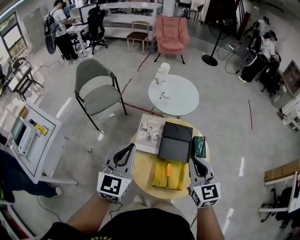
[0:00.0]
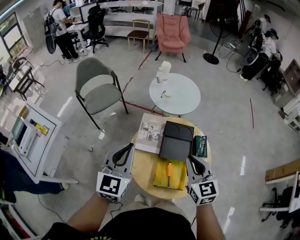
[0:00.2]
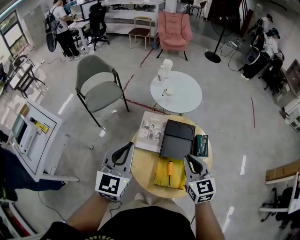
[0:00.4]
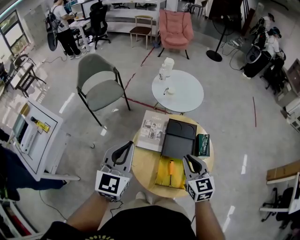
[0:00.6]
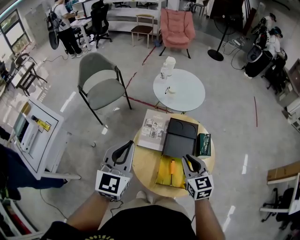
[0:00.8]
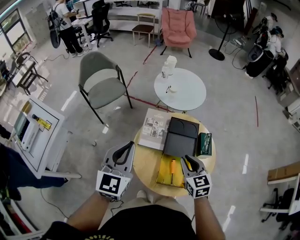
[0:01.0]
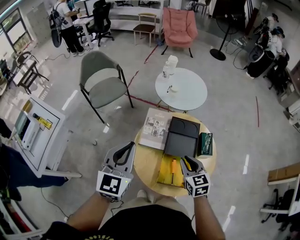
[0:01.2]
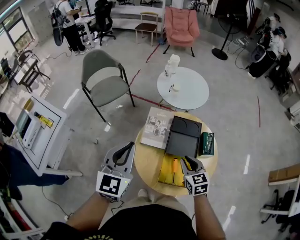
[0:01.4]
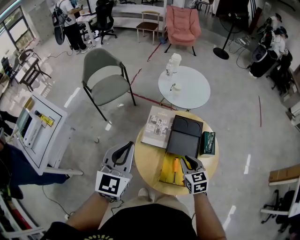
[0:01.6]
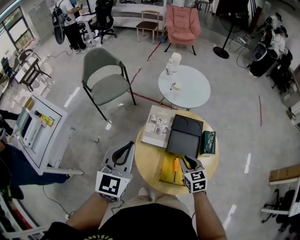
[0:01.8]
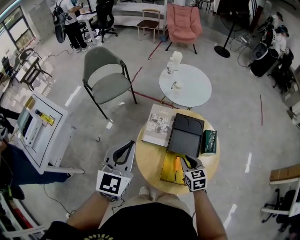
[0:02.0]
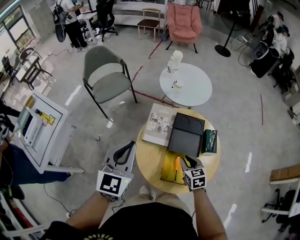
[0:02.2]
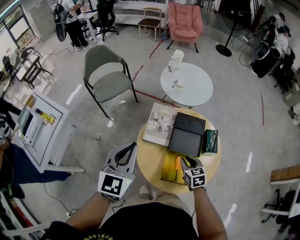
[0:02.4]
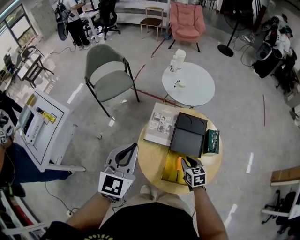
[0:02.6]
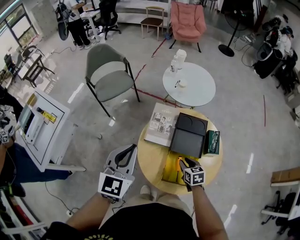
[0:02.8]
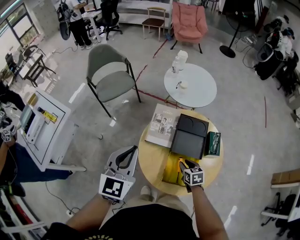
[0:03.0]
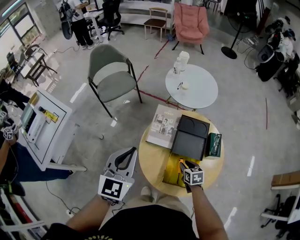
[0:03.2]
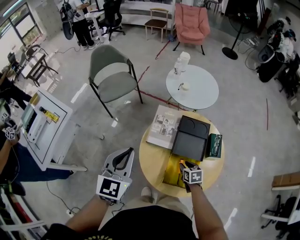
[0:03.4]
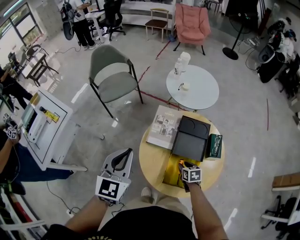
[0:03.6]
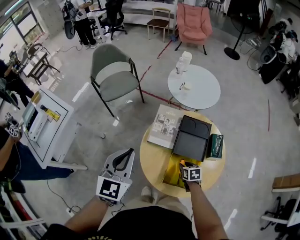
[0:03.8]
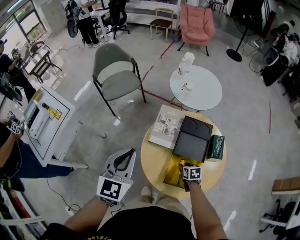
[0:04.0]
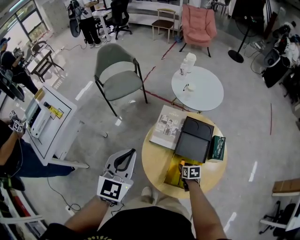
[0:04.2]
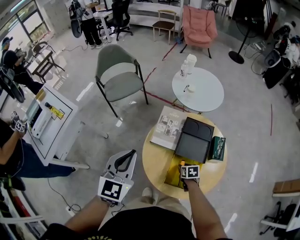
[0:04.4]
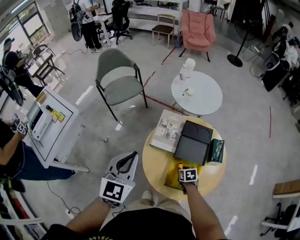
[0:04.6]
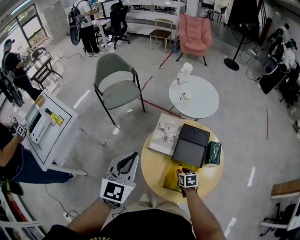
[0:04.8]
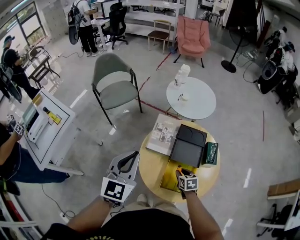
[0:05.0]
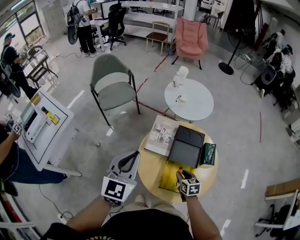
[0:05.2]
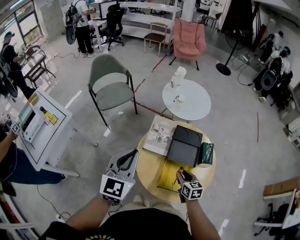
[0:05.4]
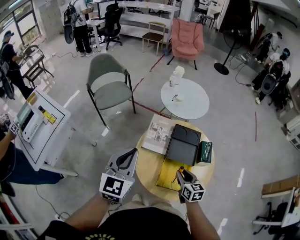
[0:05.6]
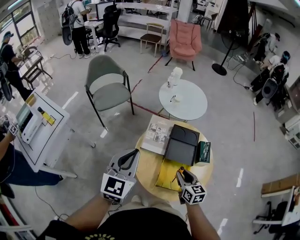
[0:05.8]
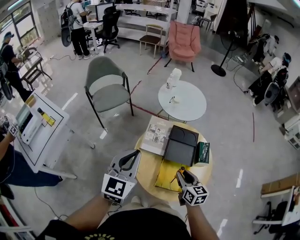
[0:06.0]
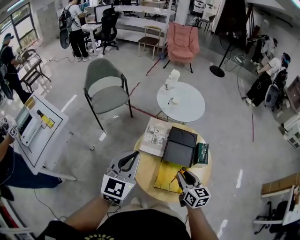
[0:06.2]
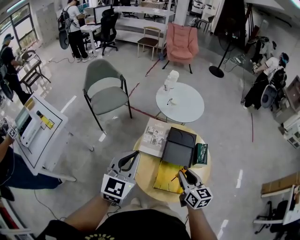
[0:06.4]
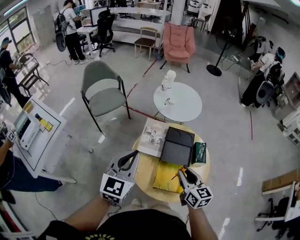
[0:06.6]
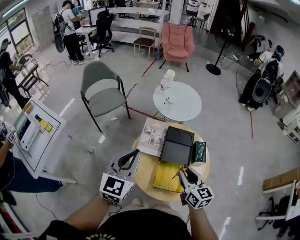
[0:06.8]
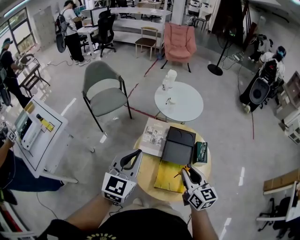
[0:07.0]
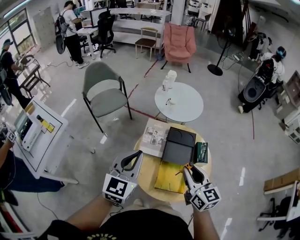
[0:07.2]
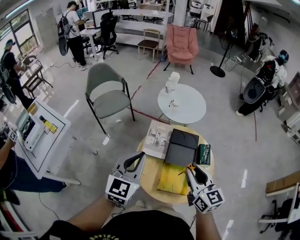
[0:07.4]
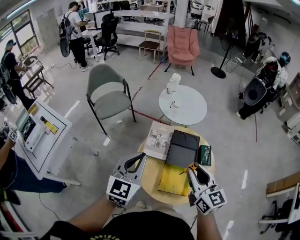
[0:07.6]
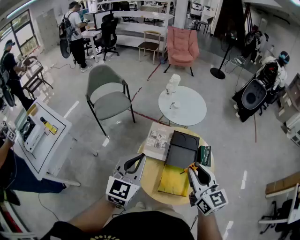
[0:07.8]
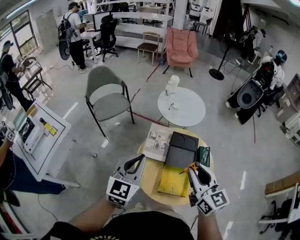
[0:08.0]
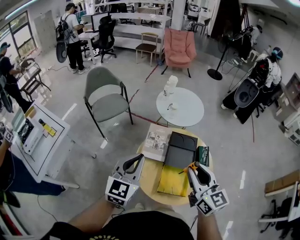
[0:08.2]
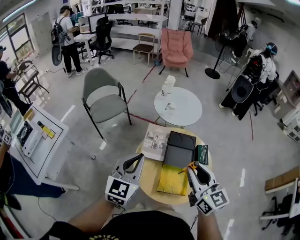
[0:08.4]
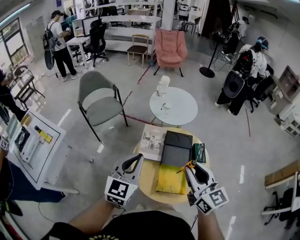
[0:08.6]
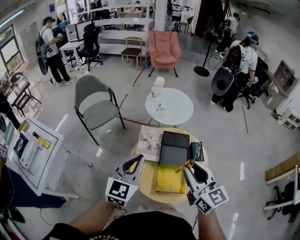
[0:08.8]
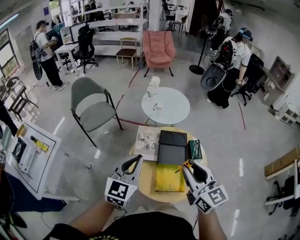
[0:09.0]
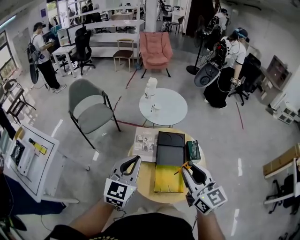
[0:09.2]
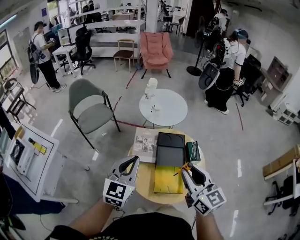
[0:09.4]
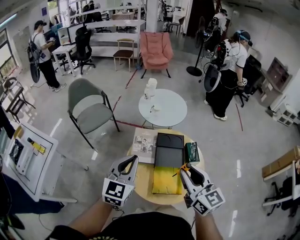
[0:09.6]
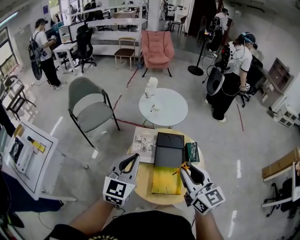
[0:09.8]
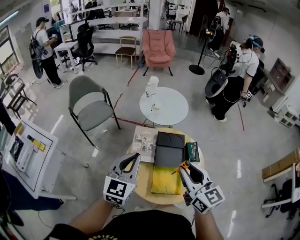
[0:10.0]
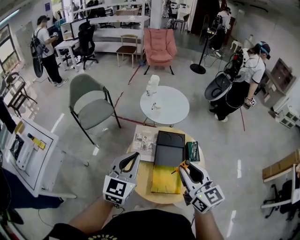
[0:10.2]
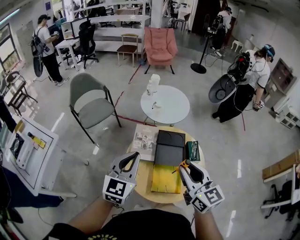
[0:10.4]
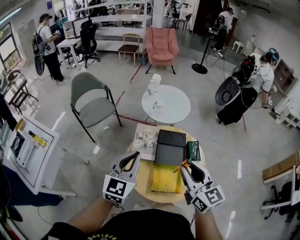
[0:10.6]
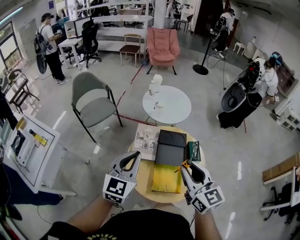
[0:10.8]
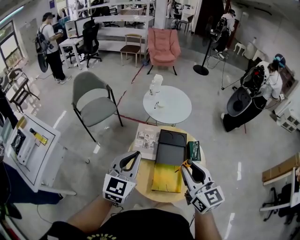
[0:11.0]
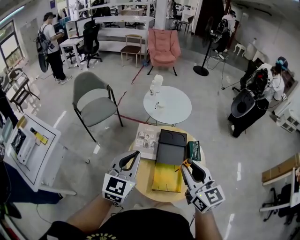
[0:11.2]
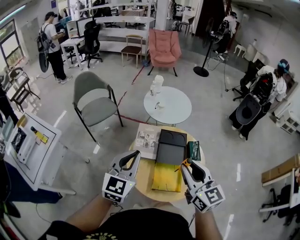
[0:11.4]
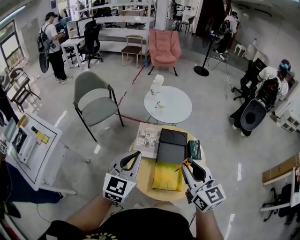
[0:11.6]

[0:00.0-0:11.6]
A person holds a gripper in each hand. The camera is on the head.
0:00.0 to 0:01.4: The right gripper is displaced downward by some 15 cm.
0:01.4 to 0:02.8: The right gripper is displaced downward by some 15 cm.
0:02.8 to 0:04.4: The right gripper shifts some 10 cm downward.
0:04.4 to 0:05.8: The right gripper heads upward, covering some 20 cm, and tilts its fingers some 30 degrees upward.
0:05.8 to 0:07.2: The right gripper travels upward by approximately 15 cm.
0:07.2 to 0:08.8: The right gripper is displaced upward by approximately 10 cm.
0:08.8 to 0:11.6: There are only small adjustments of the grippers.

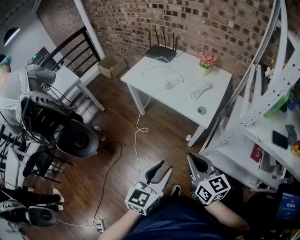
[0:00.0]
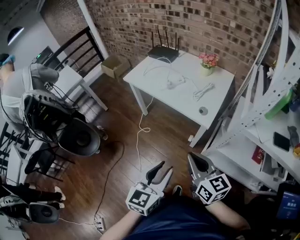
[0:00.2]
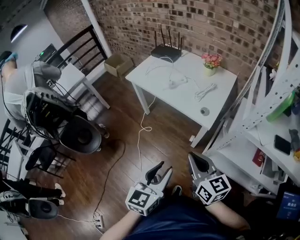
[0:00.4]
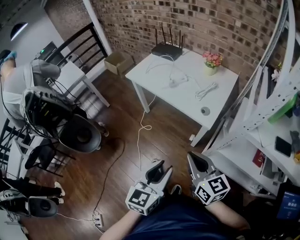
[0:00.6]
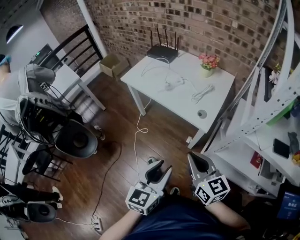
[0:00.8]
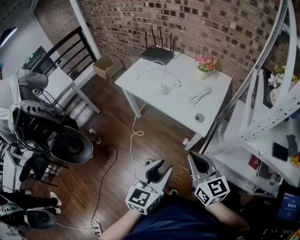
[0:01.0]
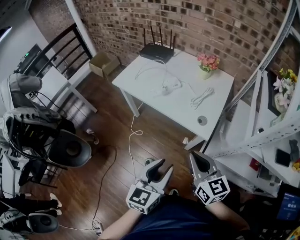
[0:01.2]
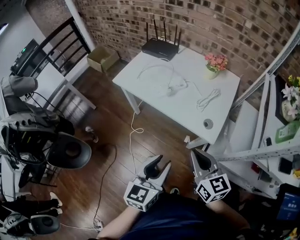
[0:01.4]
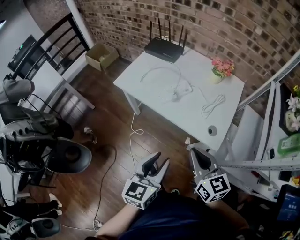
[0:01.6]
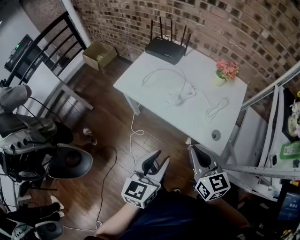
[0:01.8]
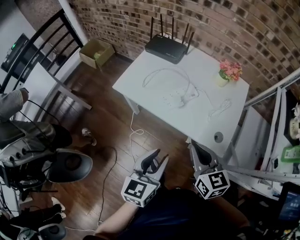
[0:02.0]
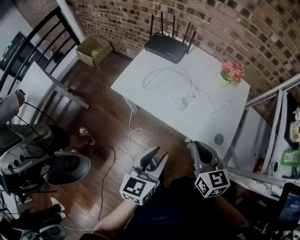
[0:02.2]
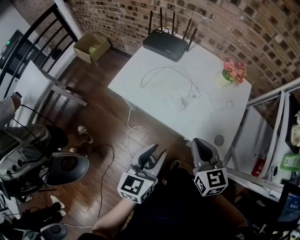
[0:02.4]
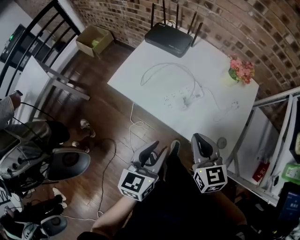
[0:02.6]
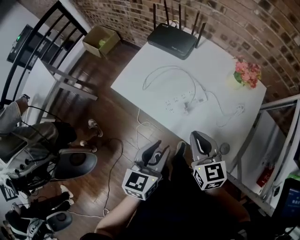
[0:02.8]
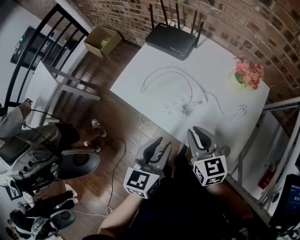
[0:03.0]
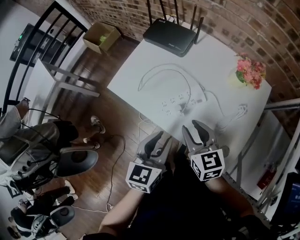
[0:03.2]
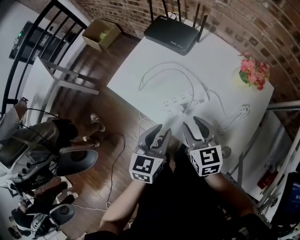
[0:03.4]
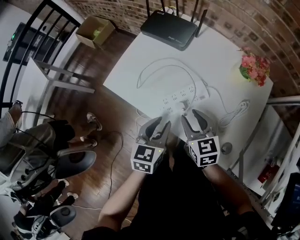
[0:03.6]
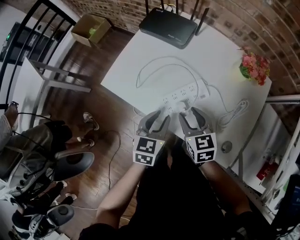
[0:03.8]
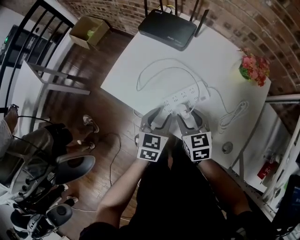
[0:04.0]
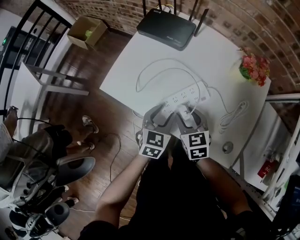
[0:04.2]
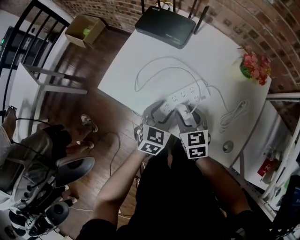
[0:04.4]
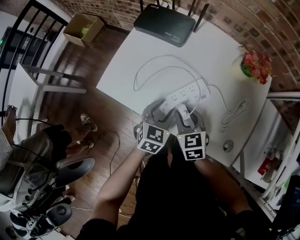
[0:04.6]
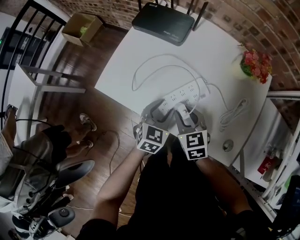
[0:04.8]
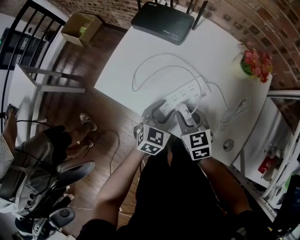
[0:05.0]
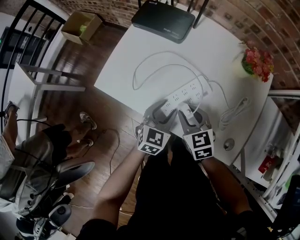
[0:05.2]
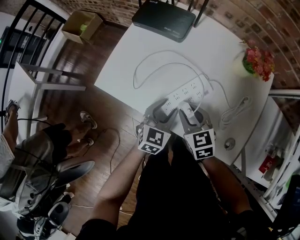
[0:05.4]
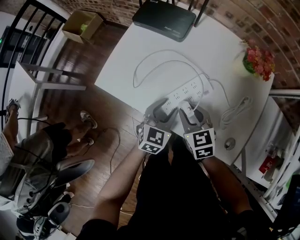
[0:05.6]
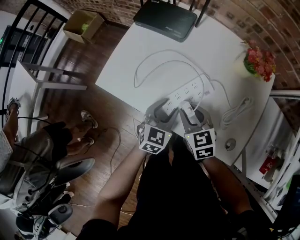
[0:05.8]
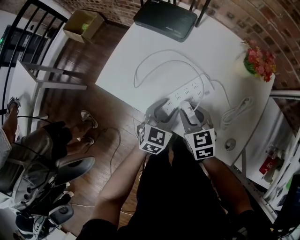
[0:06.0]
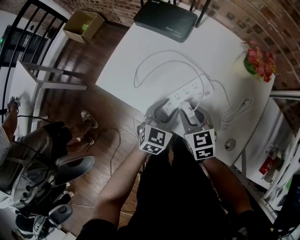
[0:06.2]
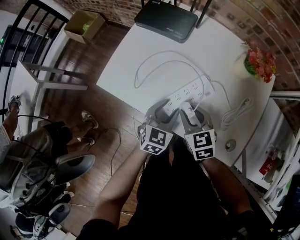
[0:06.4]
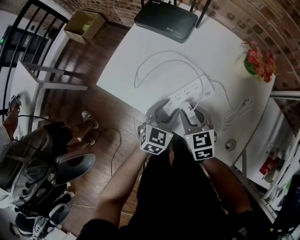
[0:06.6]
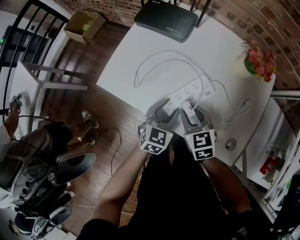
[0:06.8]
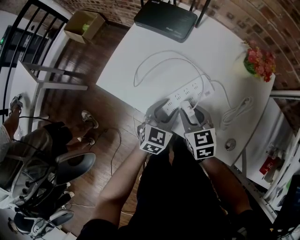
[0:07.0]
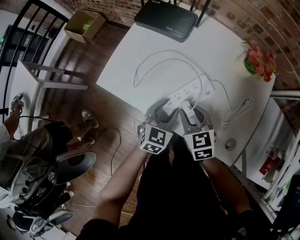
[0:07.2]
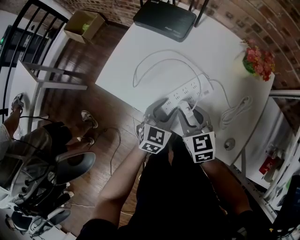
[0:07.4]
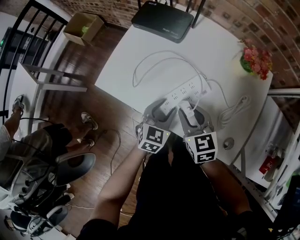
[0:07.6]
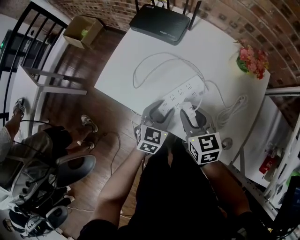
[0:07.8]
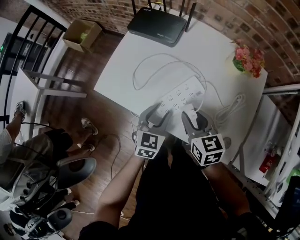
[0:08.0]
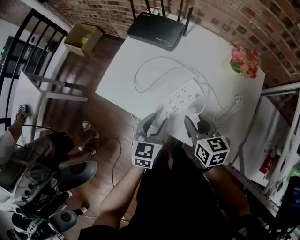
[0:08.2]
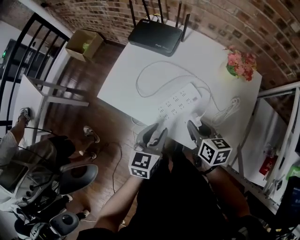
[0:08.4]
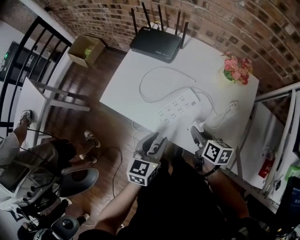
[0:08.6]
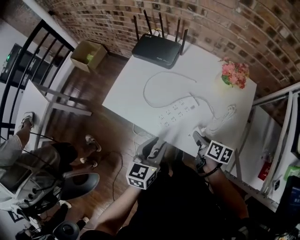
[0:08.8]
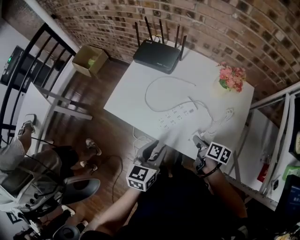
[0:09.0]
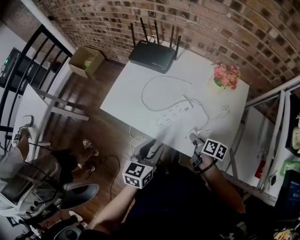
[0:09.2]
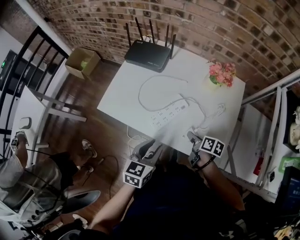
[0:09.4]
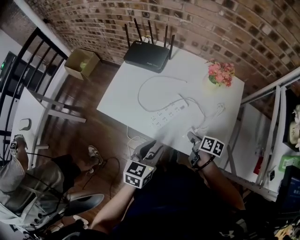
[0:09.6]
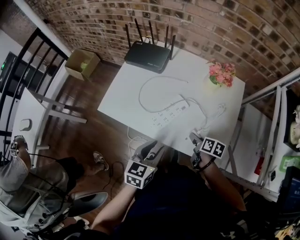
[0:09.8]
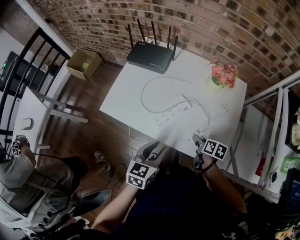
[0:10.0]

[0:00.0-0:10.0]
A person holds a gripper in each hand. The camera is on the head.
0:00.0 to 0:01.4: The two grippers go approximately 15 cm forward.
0:01.4 to 0:02.8: The two grippers go some 25 cm forward.
0:02.8 to 0:04.2: The two grippers go some 20 cm downward and forward. The left gripper changes its angle by about 20 degrees, while the right gripper opens.
0:04.2 to 0:05.8: The grippers move only a little.
0:05.8 to 0:07.2: Neither gripper changes place.
0:07.2 to 0:08.6: The right gripper is displaced to the right by roughly 10 cm, and rotates around the line of its fingers by some 50 degrees, clockwise from behind. The left gripper is displaced upward and backward by approximately 10 cm.
0:08.6 to 0:10.0: The right gripper heads downward and to the right, covering approximately 10 cm.

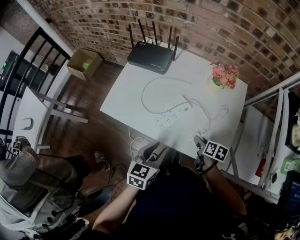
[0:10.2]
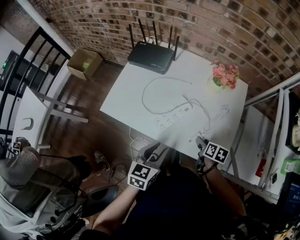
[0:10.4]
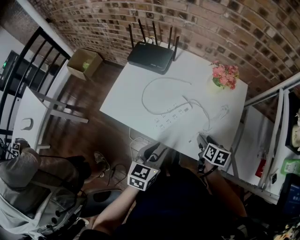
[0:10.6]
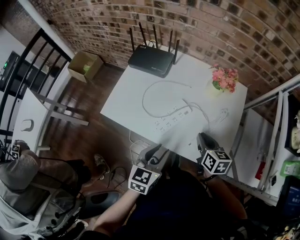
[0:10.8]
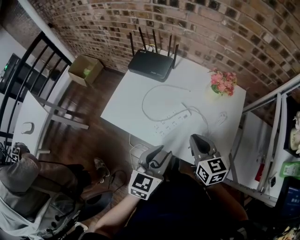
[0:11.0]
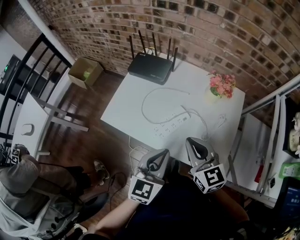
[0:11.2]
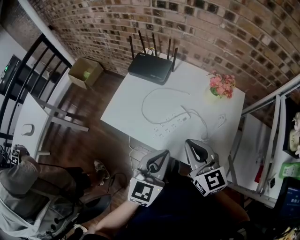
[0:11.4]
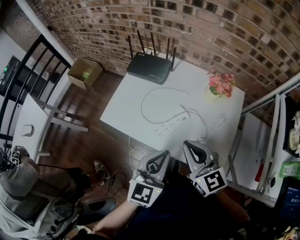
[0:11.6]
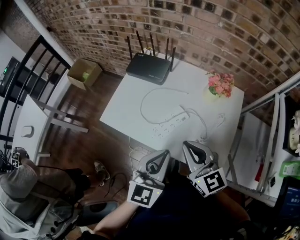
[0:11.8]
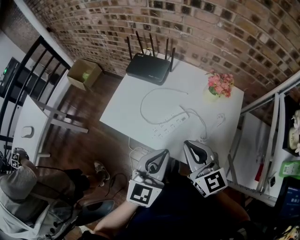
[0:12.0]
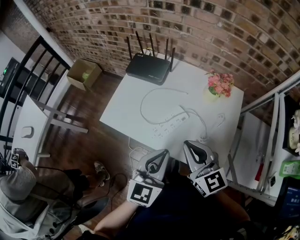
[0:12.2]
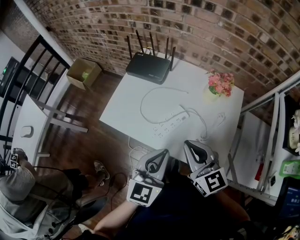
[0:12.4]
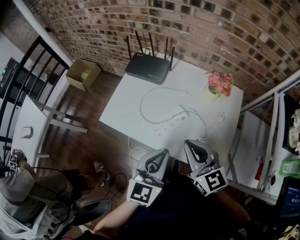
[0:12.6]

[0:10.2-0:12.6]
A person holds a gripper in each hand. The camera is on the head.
0:10.2 to 0:11.4: The right gripper heads upward and to the left, covering some 30 cm, tilts its fingers about 40 degrees upward, and closes. The left gripper goes some 10 cm upward, rotates about 20 degrees, and closes its fingers.
0:11.4 to 0:12.6: The grippers make only small movements.
